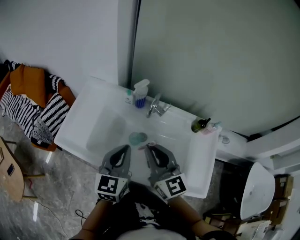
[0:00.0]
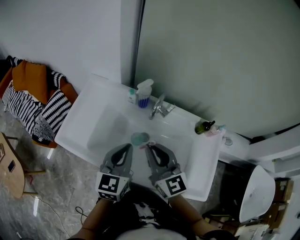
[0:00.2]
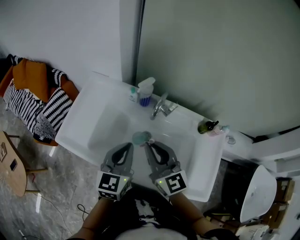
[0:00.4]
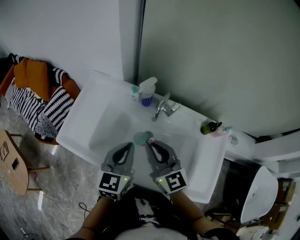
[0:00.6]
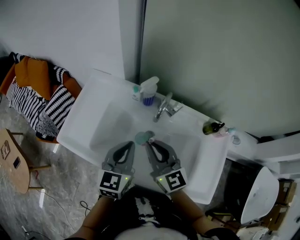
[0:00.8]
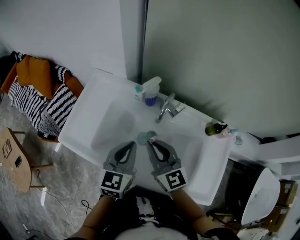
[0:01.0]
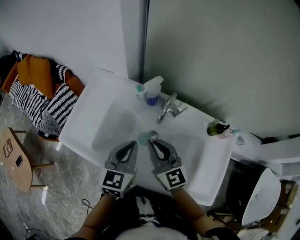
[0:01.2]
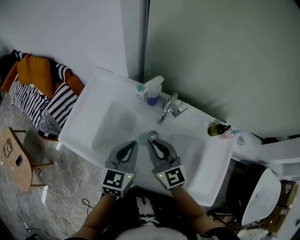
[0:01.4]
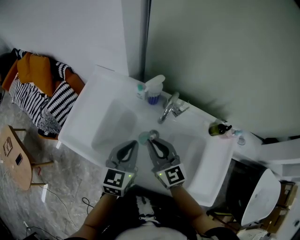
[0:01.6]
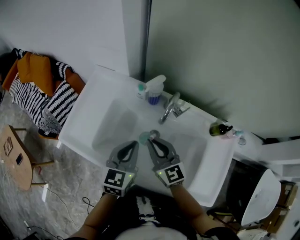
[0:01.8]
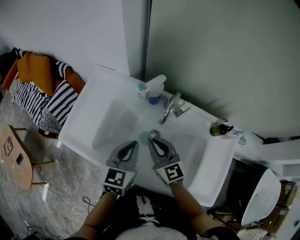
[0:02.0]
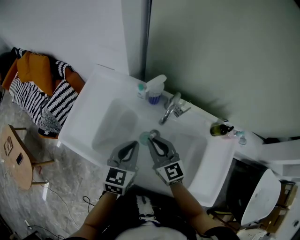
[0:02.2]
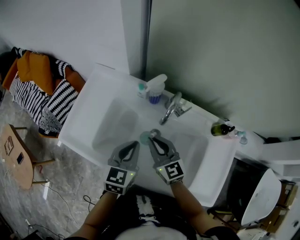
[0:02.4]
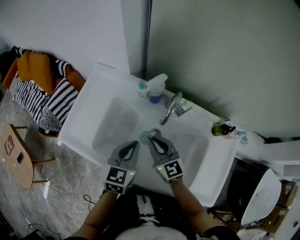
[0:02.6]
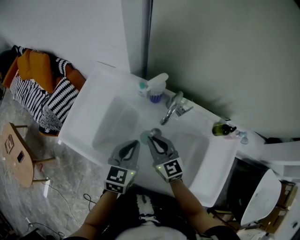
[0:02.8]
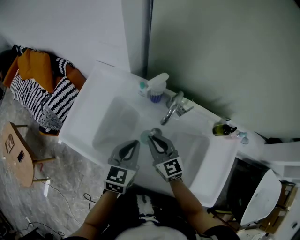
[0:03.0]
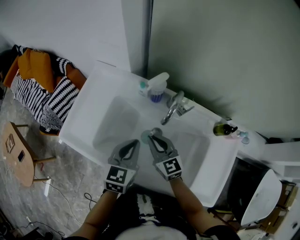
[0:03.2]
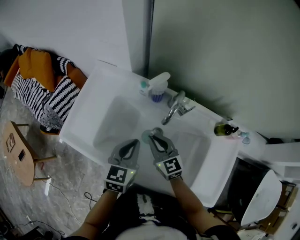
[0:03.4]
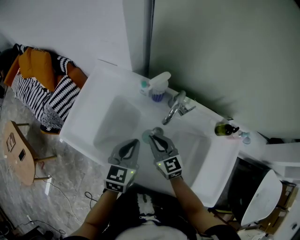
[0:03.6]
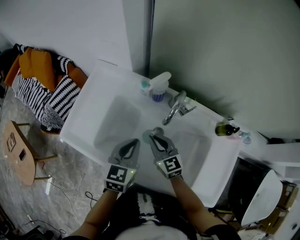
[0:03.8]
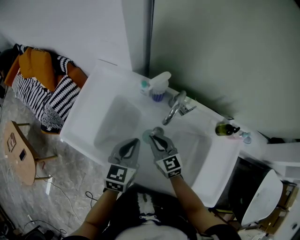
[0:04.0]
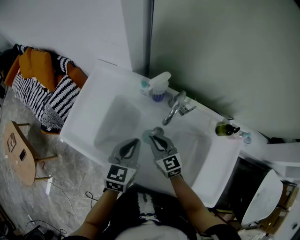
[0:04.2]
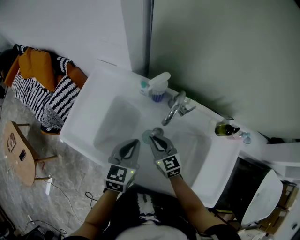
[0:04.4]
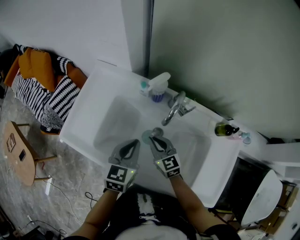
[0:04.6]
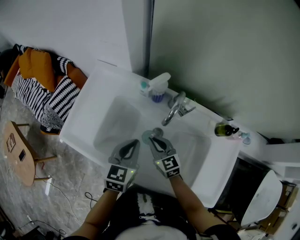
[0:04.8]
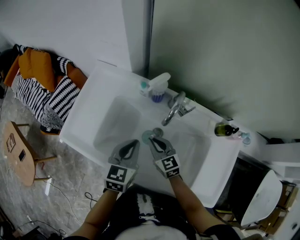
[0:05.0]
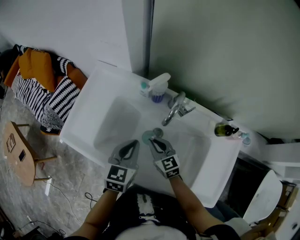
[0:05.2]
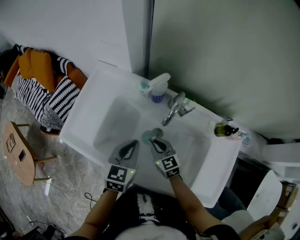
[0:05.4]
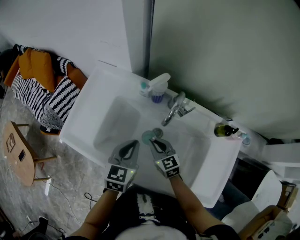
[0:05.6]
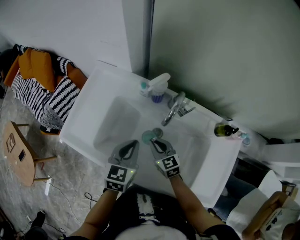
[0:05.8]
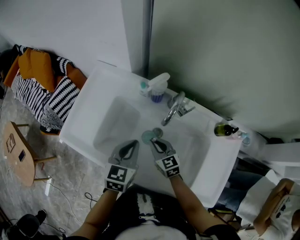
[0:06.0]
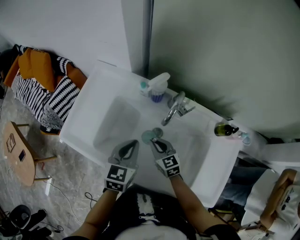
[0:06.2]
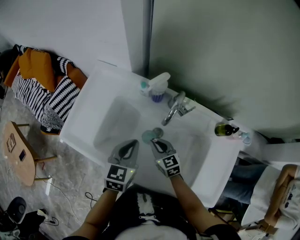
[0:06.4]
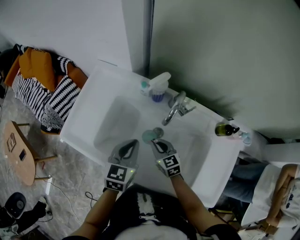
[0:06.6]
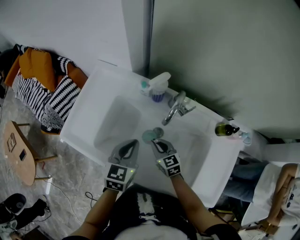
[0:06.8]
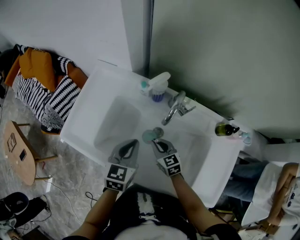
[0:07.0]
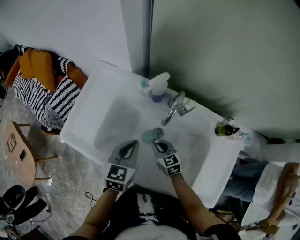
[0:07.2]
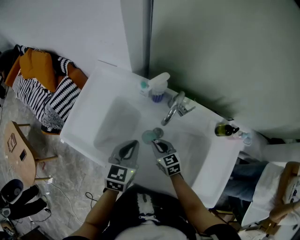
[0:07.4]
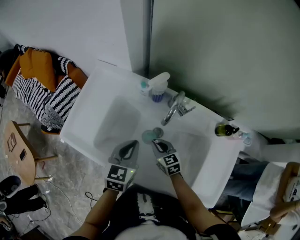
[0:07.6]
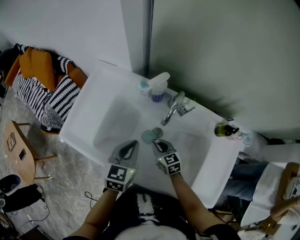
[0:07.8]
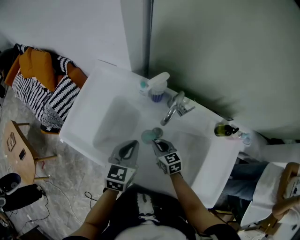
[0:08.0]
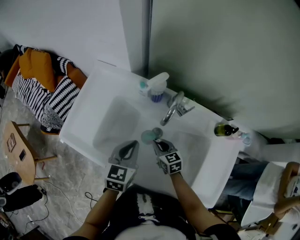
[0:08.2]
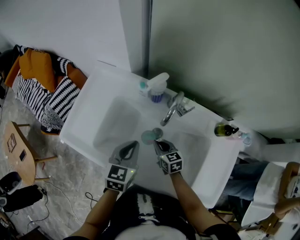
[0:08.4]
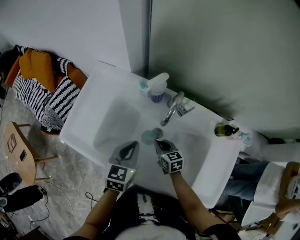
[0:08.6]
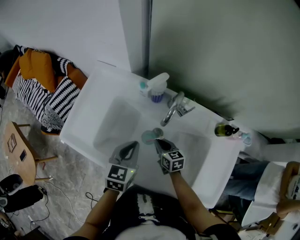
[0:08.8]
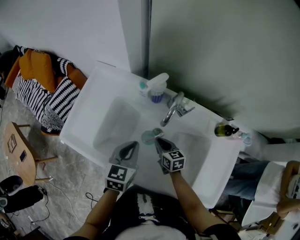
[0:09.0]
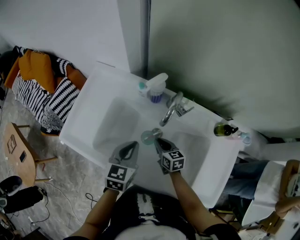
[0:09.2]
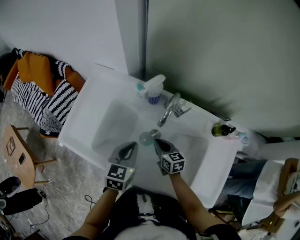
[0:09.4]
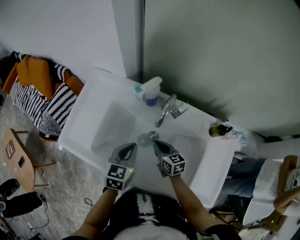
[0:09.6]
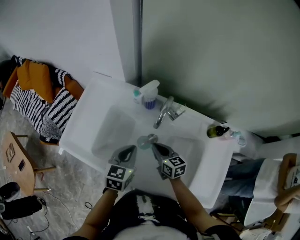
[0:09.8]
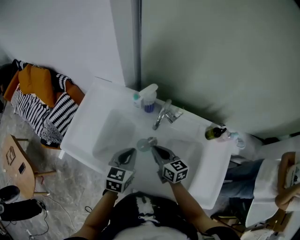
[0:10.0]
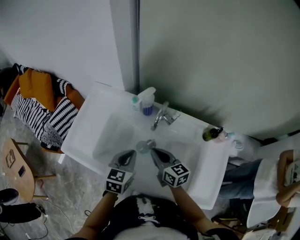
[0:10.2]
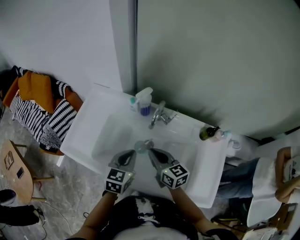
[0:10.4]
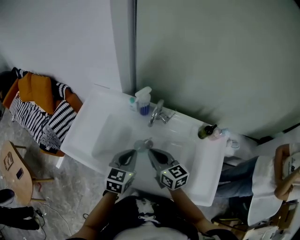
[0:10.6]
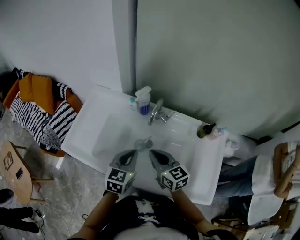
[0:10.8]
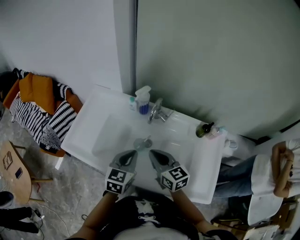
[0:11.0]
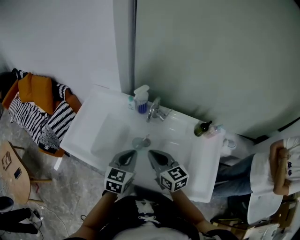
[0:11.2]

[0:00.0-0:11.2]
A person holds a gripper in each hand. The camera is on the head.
0.0 to 1.6 s: The right gripper moves downward and forward, approximately 15 cm. Meanwhile the left gripper is displaced forward and downward by some 10 cm.
1.6 to 3.2 s: The right gripper moves downward, approximately 10 cm.
3.2 to 4.8 s: The right gripper heads downward, covering roughly 5 cm.
4.8 to 6.4 s: There are only small adjustments of the grippers.
6.4 to 9.6 s: The grippers stay close to where they were, moving slightly.
9.6 to 11.2 s: The left gripper is displaced backward and upward by some 10 cm, while the right gripper shifts approximately 20 cm upward and backward.

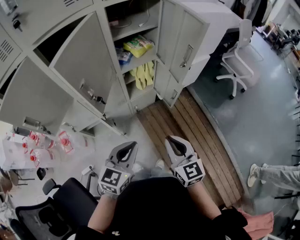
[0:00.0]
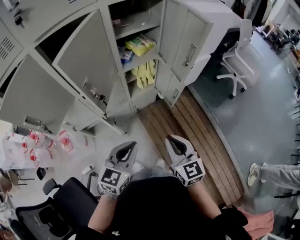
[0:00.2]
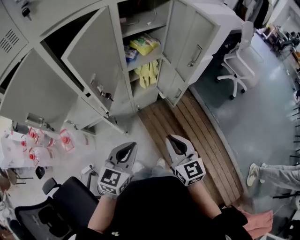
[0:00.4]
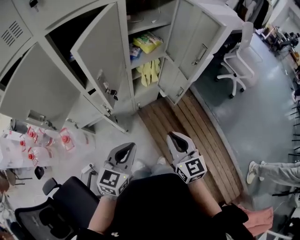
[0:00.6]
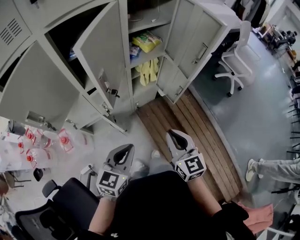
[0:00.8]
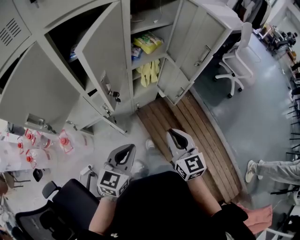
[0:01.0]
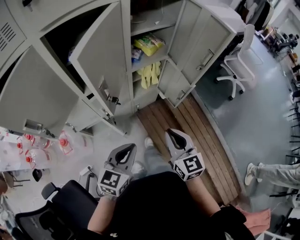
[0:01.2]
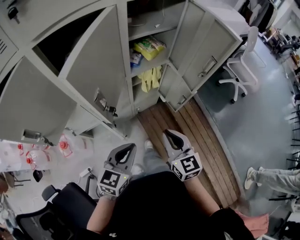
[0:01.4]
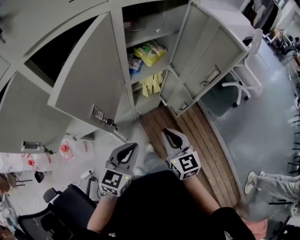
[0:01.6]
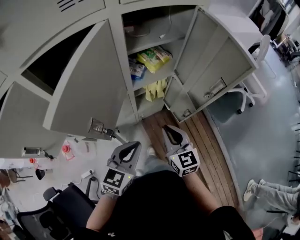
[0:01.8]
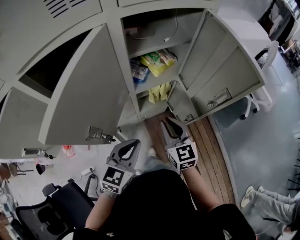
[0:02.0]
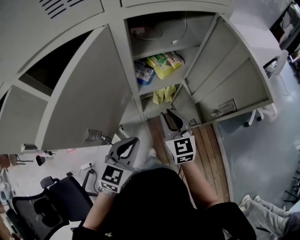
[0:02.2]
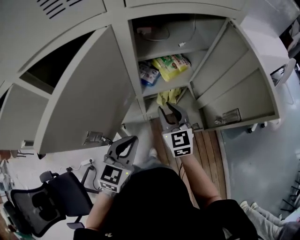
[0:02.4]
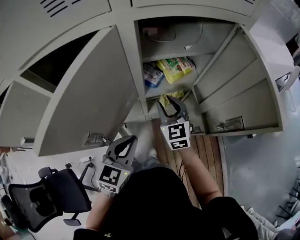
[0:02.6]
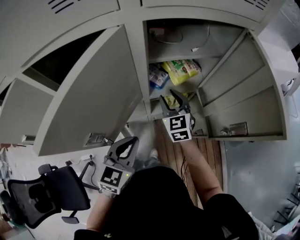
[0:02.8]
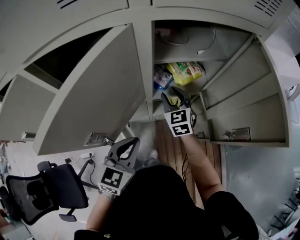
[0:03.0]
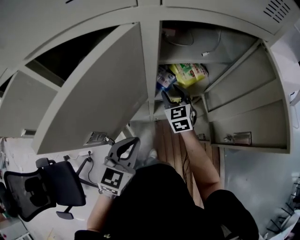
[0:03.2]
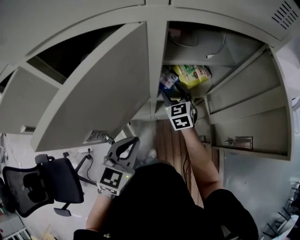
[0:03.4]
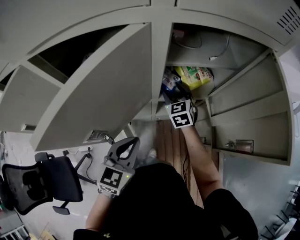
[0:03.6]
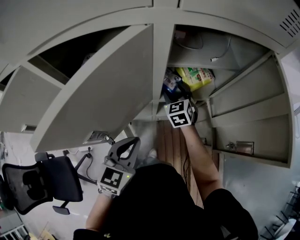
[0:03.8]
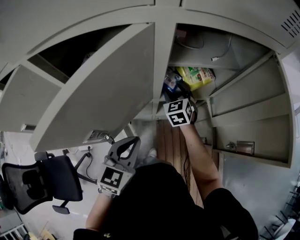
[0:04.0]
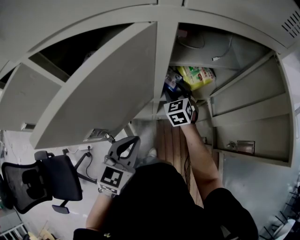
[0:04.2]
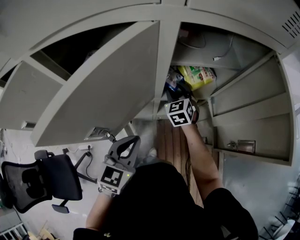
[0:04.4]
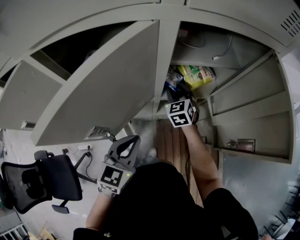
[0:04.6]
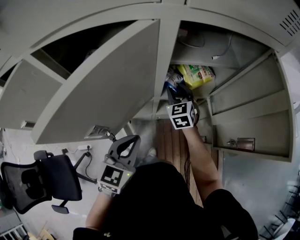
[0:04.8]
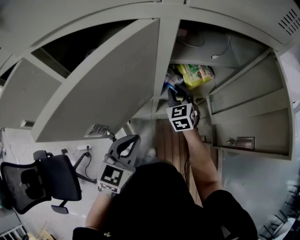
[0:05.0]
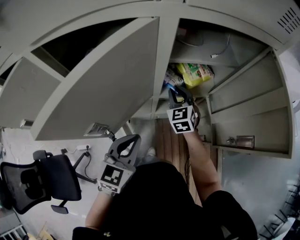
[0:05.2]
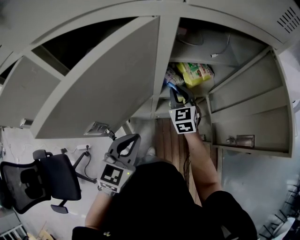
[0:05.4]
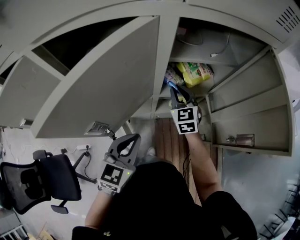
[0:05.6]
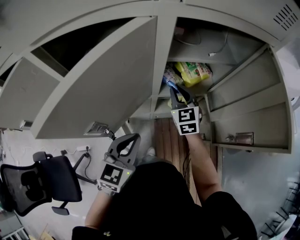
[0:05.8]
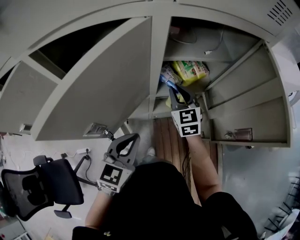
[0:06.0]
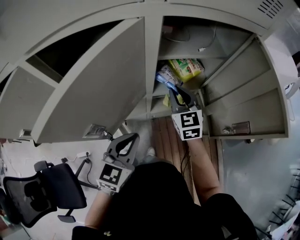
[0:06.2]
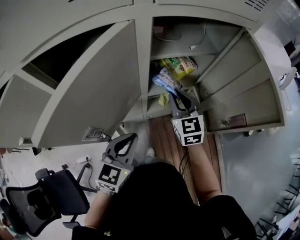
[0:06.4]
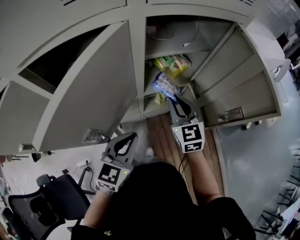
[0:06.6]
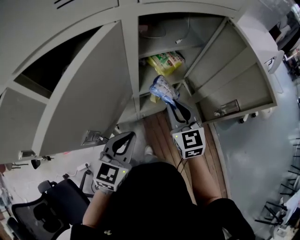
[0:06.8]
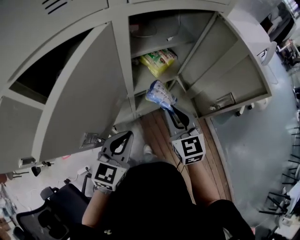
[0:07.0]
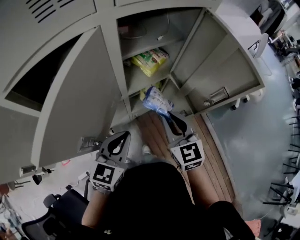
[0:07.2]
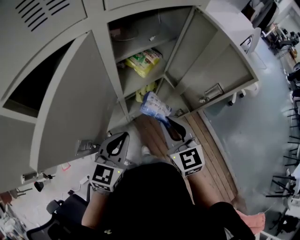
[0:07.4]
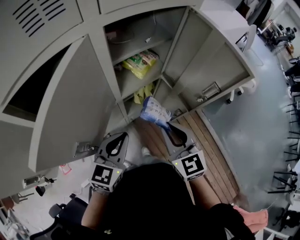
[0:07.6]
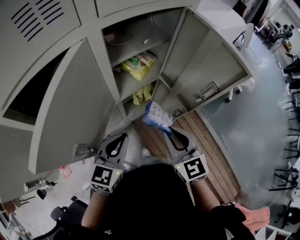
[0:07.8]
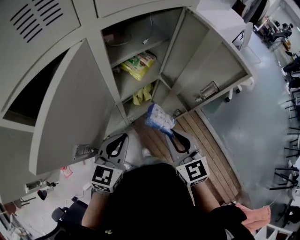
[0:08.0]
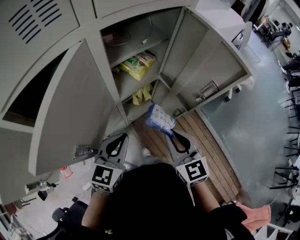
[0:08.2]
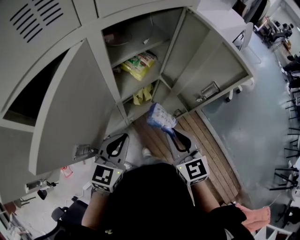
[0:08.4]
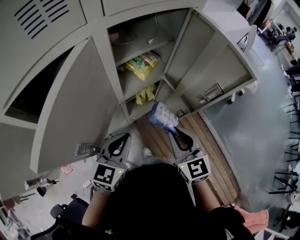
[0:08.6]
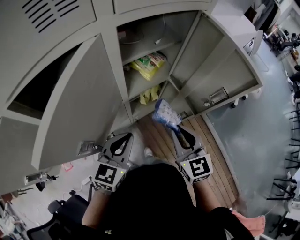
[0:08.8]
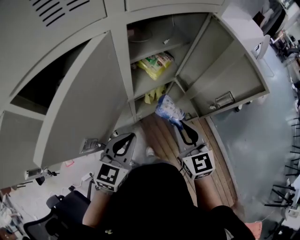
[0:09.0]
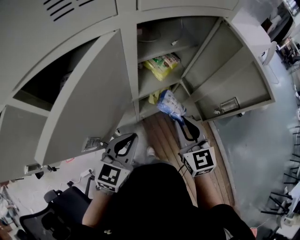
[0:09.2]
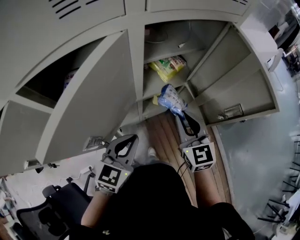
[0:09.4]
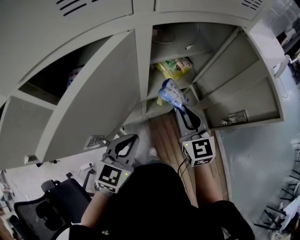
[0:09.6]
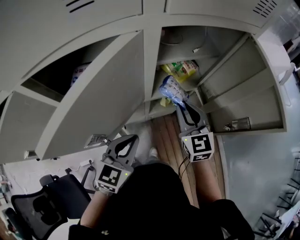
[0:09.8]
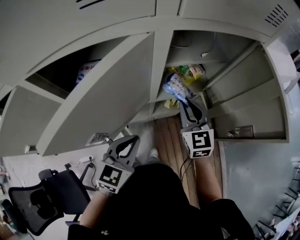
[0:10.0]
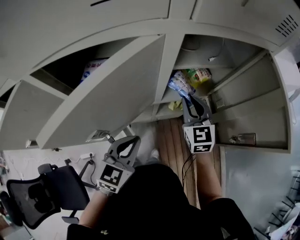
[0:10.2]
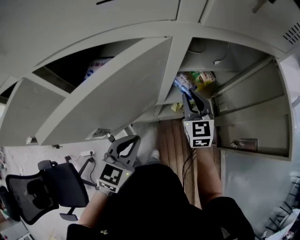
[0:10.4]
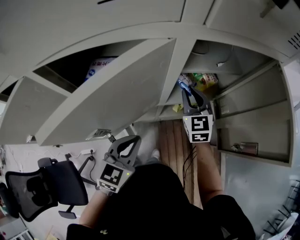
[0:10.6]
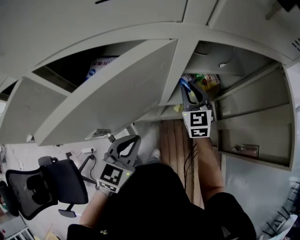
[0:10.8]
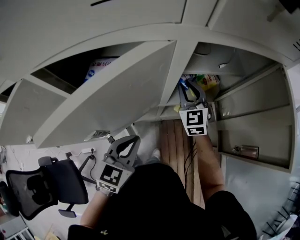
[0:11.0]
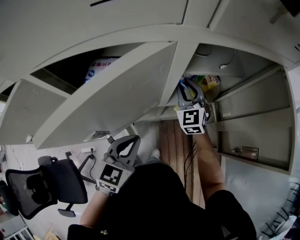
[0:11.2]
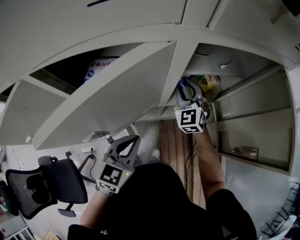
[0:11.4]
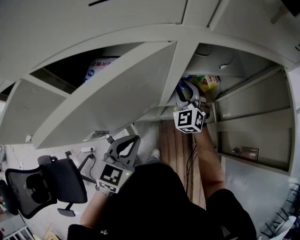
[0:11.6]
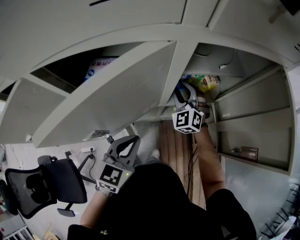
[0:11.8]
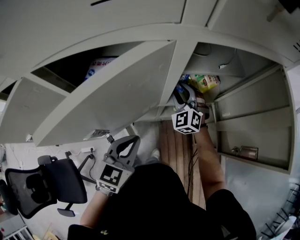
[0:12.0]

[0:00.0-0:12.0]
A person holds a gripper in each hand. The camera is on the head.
0.0 to 1.6 s: The grippers both shift forward and to the left by about 15 cm.
1.6 to 3.0 s: The right gripper shifts roughly 30 cm forward, changes its angle by some 30 degrees, and opens. Meanwhile the left gripper heads forward, covering about 15 cm.
3.0 to 4.4 s: The right gripper moves about 5 cm.
4.4 to 6.0 s: The right gripper is displaced upward by some 5 cm, and closes its fingers.
6.0 to 7.6 s: The left gripper turns by about 20 degrees. The right gripper goes roughly 20 cm backward and to the right.
7.6 to 9.0 s: There are only small adjustments of the grippers.
9.0 to 10.4 s: The left gripper ends up approximately 5 cm from where it was. Meanwhile the right gripper is displaced forward and to the left by some 20 cm.
10.4 to 12.0 s: The right gripper heads downward and to the left, covering approximately 10 cm, swivels about 40 degrees, and opens.

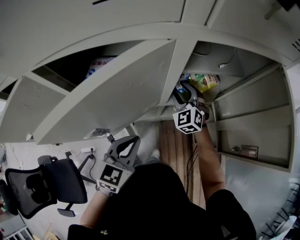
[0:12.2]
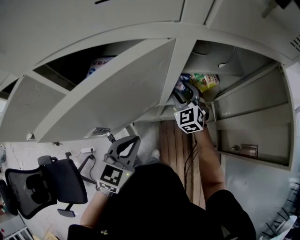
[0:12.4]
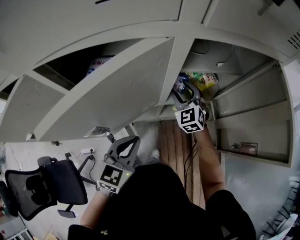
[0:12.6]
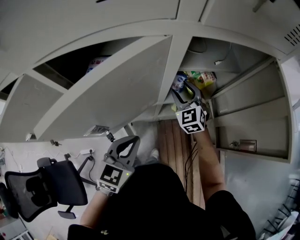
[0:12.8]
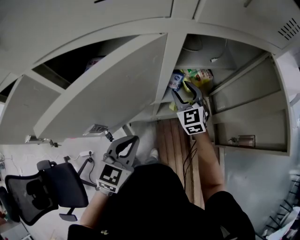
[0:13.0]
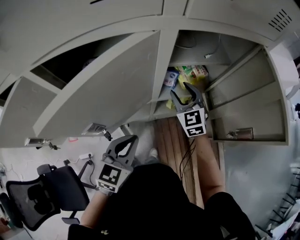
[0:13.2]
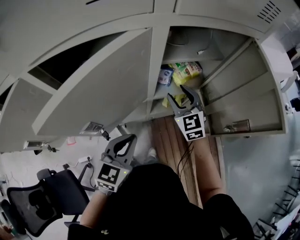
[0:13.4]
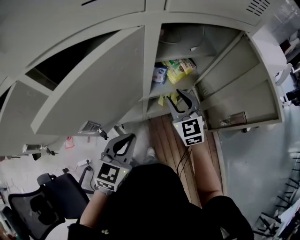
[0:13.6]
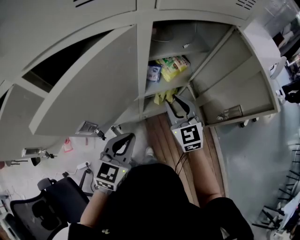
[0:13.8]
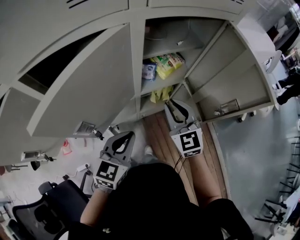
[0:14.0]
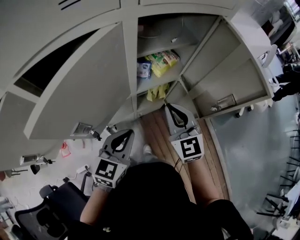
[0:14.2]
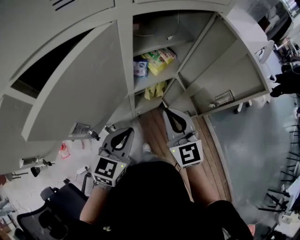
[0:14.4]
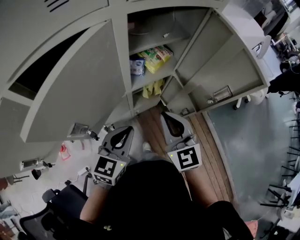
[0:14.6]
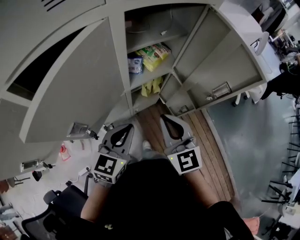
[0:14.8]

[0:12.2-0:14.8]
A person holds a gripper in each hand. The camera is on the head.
12.2 to 13.4 s: The right gripper shifts some 10 cm backward and upward, and turns by approximately 20 degrees.
13.4 to 14.8 s: The right gripper shifts approximately 15 cm backward, and closes its fingers.
